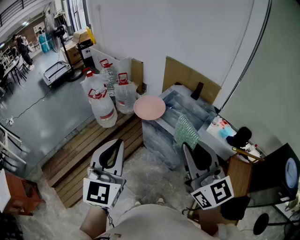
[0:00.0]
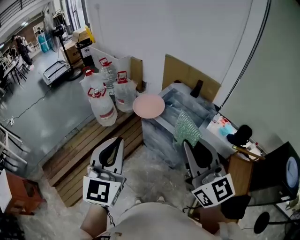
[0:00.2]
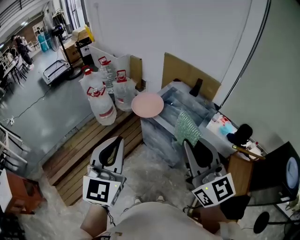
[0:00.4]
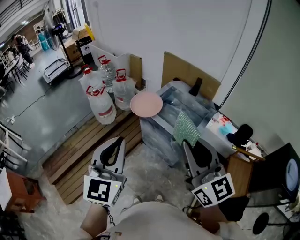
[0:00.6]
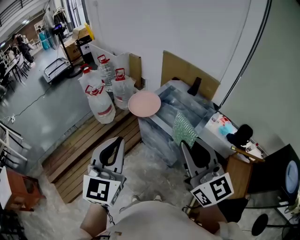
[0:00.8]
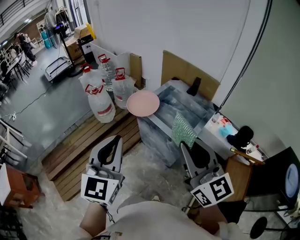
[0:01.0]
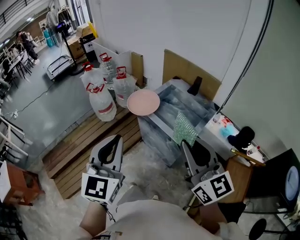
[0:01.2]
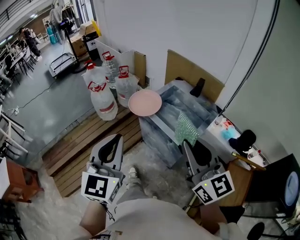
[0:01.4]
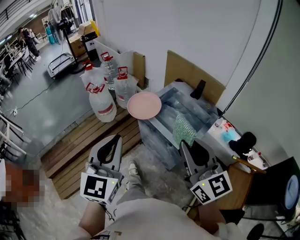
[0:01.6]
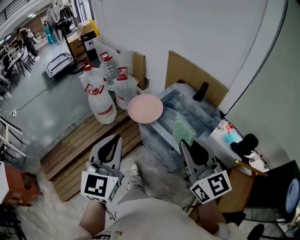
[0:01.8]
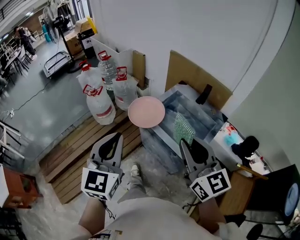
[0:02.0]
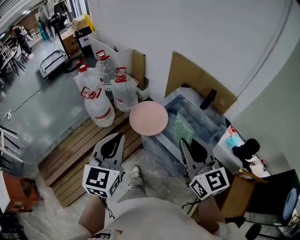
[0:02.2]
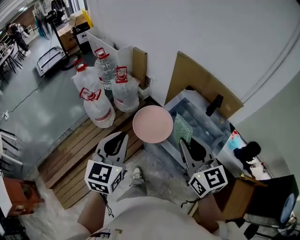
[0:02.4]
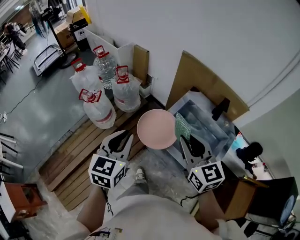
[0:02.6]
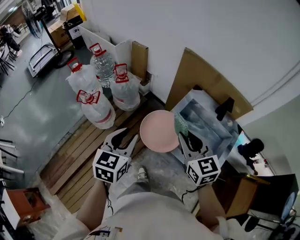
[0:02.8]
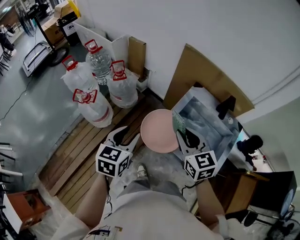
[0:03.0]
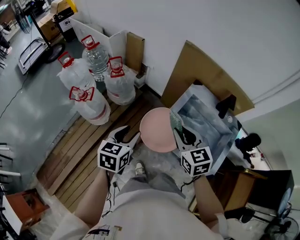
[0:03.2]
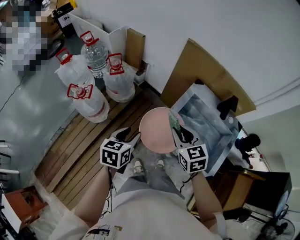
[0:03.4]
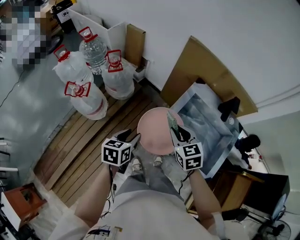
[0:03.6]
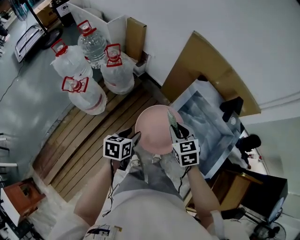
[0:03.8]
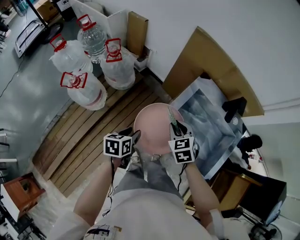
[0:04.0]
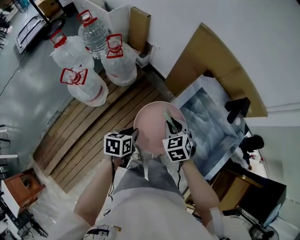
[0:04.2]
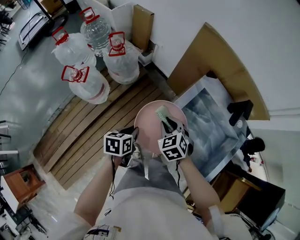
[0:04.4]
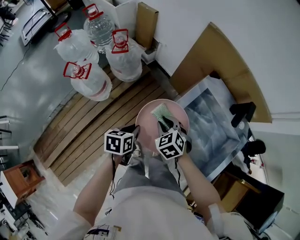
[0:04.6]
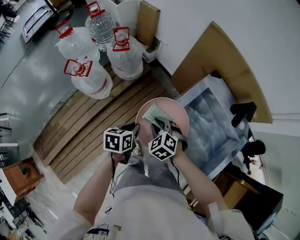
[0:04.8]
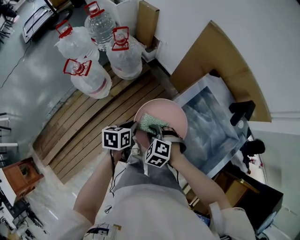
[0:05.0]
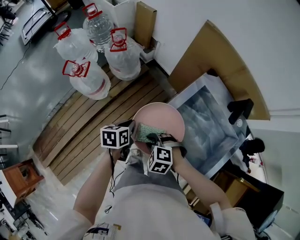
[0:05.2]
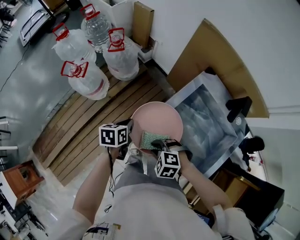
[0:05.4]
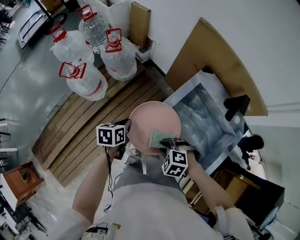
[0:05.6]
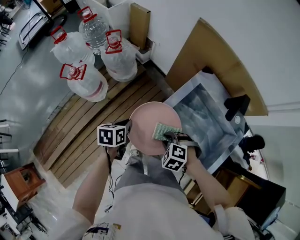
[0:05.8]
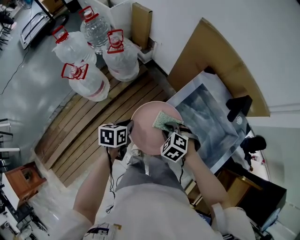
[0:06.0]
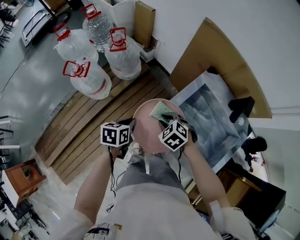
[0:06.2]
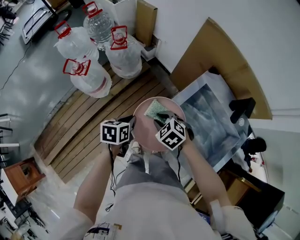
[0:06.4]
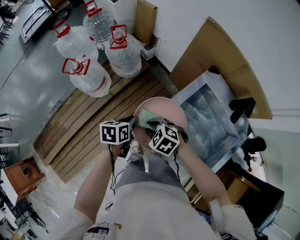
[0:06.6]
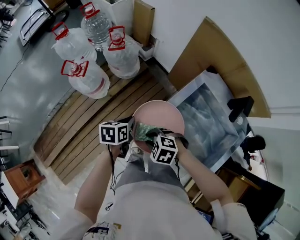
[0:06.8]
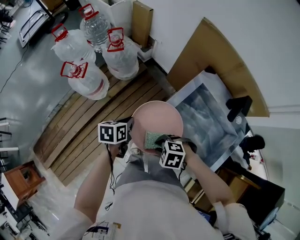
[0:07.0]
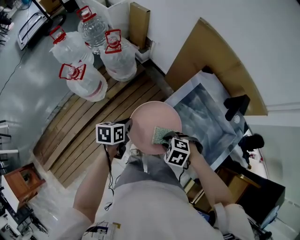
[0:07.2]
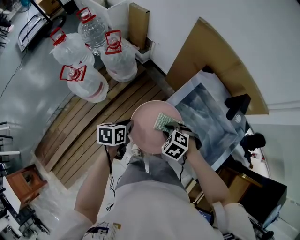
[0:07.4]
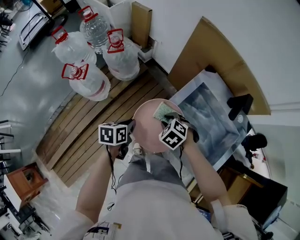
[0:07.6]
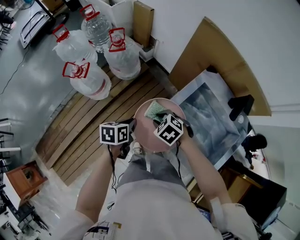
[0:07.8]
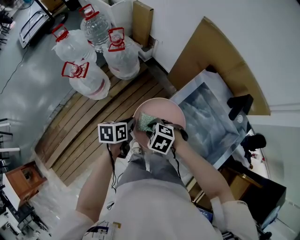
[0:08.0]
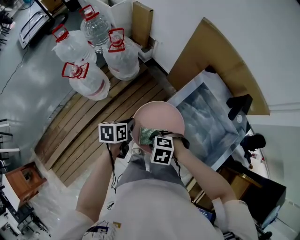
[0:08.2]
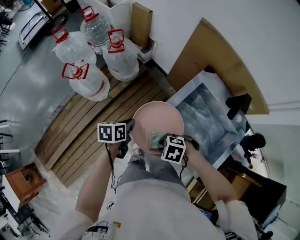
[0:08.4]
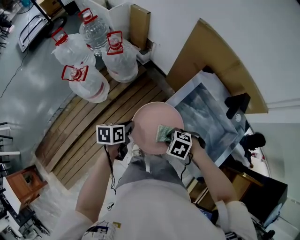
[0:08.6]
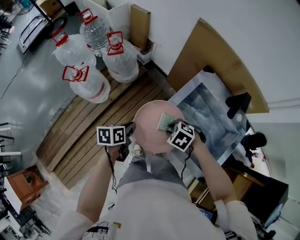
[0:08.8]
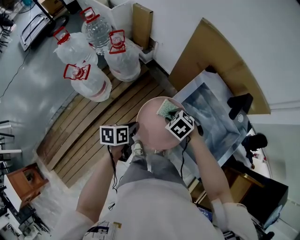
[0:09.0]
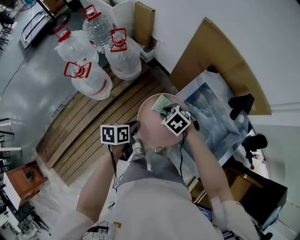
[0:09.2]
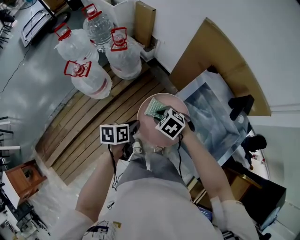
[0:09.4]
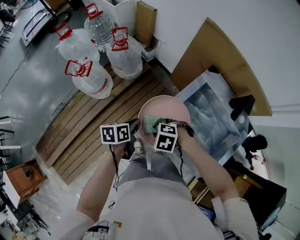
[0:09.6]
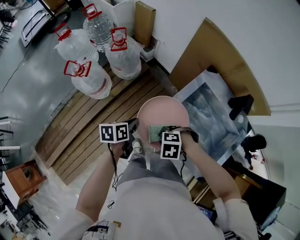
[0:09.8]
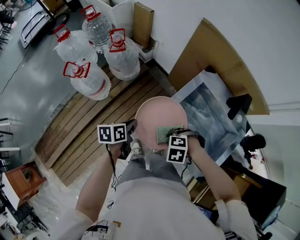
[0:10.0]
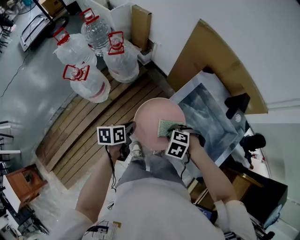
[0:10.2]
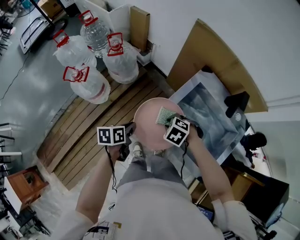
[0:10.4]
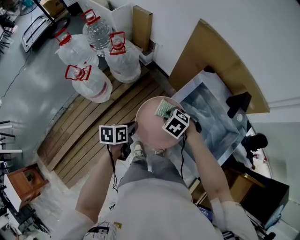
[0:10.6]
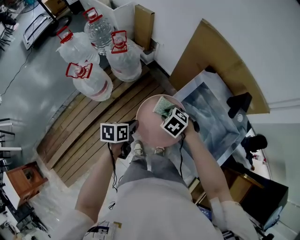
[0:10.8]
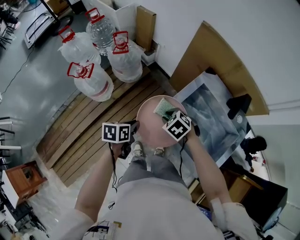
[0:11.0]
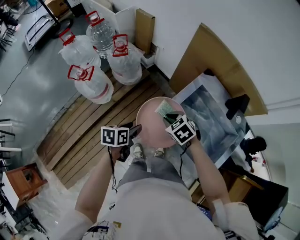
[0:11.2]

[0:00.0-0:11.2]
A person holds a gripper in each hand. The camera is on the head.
0:00.0 to 0:01.6: The left gripper shifts approximately 10 cm to the right and forward. Meanwhile the right gripper shifts about 15 cm to the right, forward and downward.
0:01.6 to 0:03.2: Both grippers are carried forward, about 40 cm. Both grippers travel together downward, roughly 25 cm. The left gripper points its fingers about 30 degrees further downward, and opens its fingers; the right gripper tips its fingers downward by about 30 degrees.
0:03.2 to 0:04.8: The two grippers go approximately 20 cm downward. The left gripper changes its angle by some 30 degrees, and closes its fingers. The right gripper rotates about 50 degrees.
0:09.6 to 0:11.2: The right gripper ends up approximately 10 cm from where it was, and changes its angle by about 40 degrees. Meanwhile the left gripper opens.

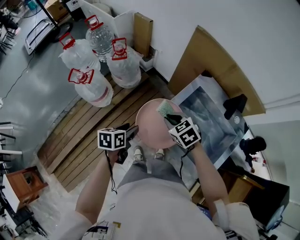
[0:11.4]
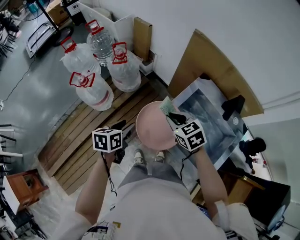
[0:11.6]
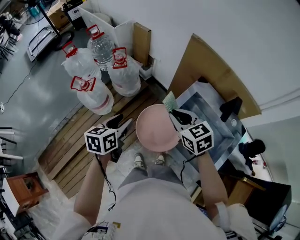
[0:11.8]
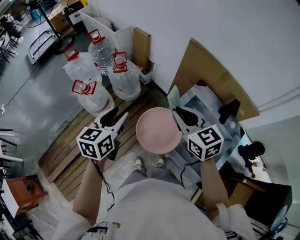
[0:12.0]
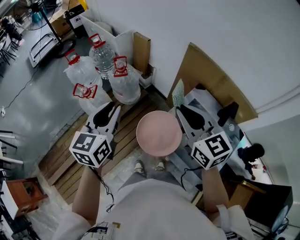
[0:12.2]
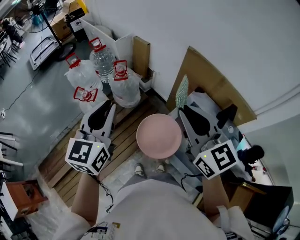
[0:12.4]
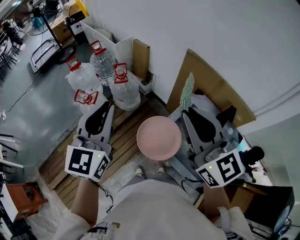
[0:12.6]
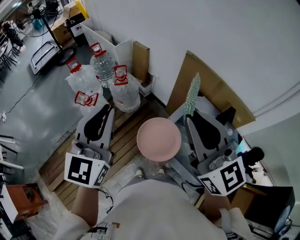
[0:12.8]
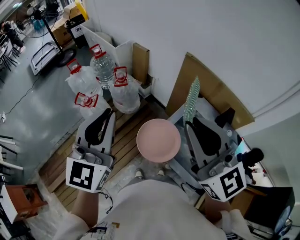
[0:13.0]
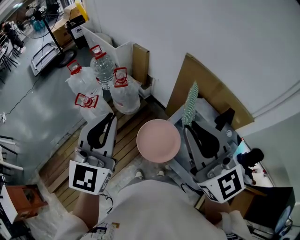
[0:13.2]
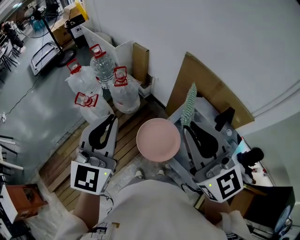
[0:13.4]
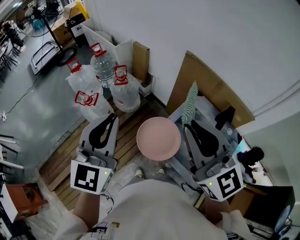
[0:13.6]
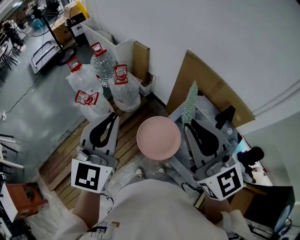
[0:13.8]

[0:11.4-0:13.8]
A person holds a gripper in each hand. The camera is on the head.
0:11.4 to 0:12.6: The grippers both shift upward by approximately 40 cm. The left gripper tips its fingers upward by about 40 degrees, and closes up. Meanwhile the right gripper tips its fingers upward by about 60 degrees.
0:12.6 to 0:13.8: There are only small adjustments of the grippers.

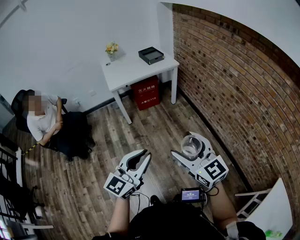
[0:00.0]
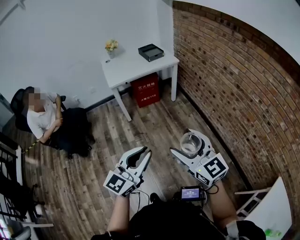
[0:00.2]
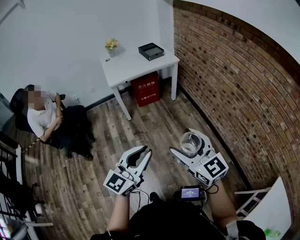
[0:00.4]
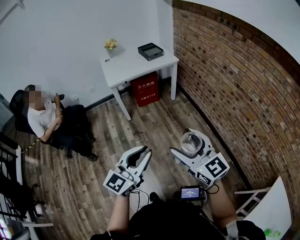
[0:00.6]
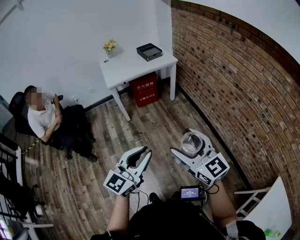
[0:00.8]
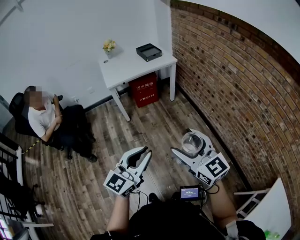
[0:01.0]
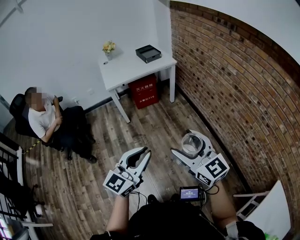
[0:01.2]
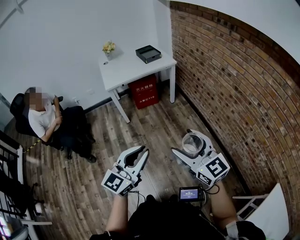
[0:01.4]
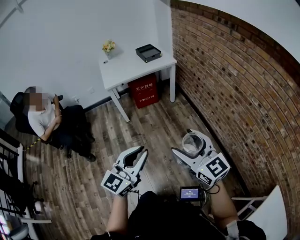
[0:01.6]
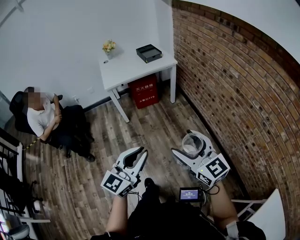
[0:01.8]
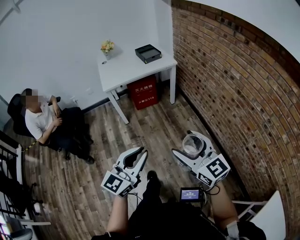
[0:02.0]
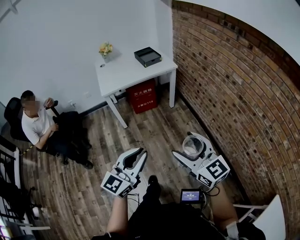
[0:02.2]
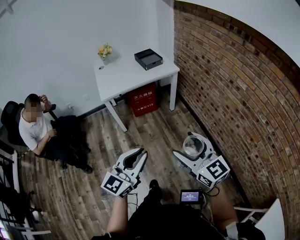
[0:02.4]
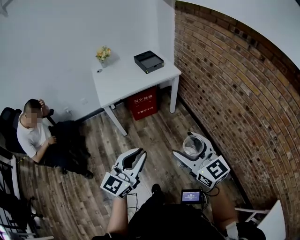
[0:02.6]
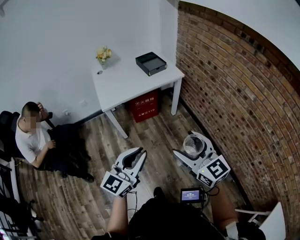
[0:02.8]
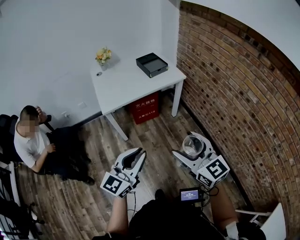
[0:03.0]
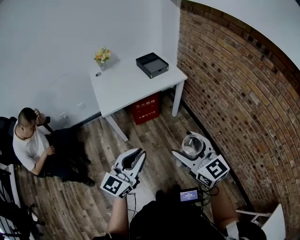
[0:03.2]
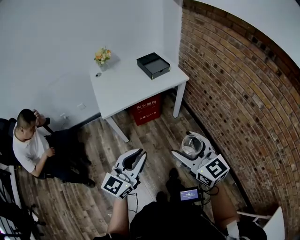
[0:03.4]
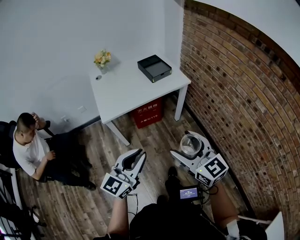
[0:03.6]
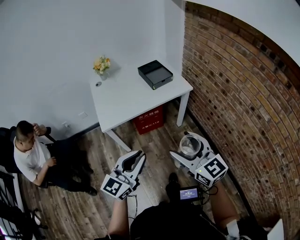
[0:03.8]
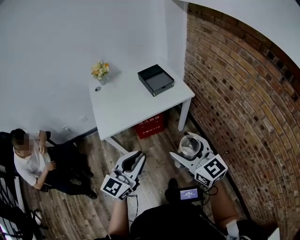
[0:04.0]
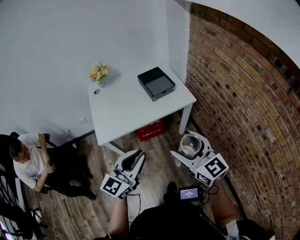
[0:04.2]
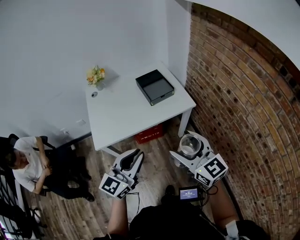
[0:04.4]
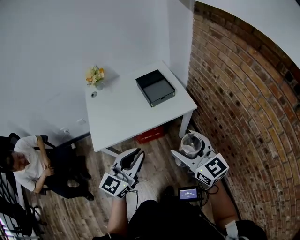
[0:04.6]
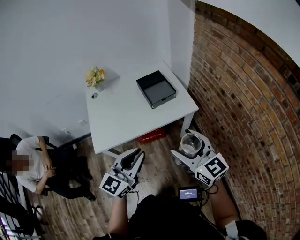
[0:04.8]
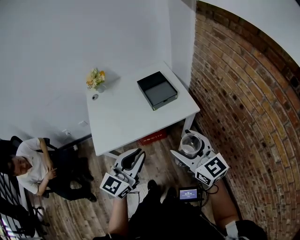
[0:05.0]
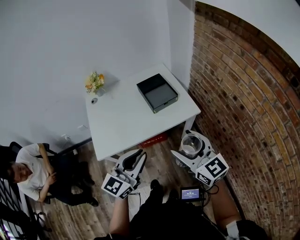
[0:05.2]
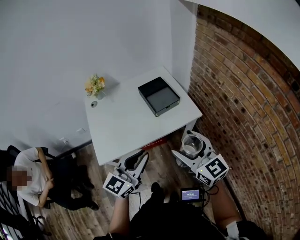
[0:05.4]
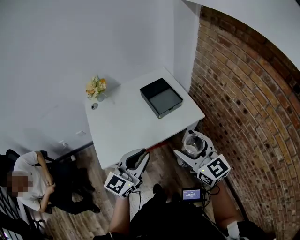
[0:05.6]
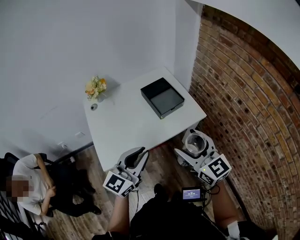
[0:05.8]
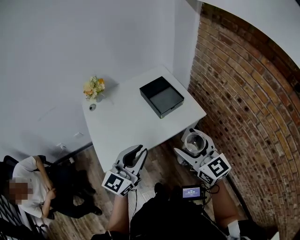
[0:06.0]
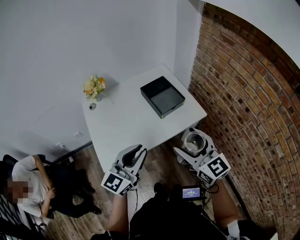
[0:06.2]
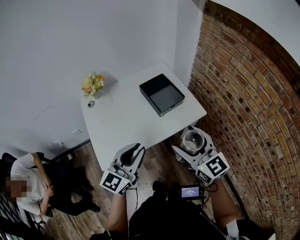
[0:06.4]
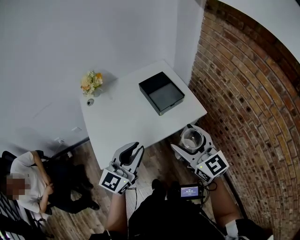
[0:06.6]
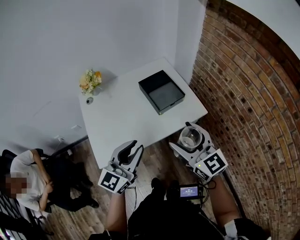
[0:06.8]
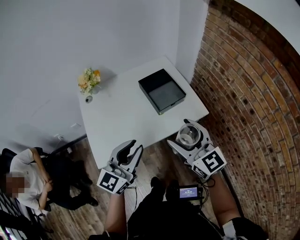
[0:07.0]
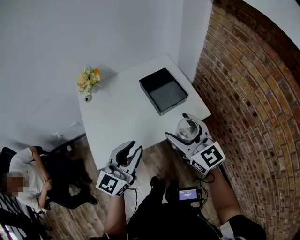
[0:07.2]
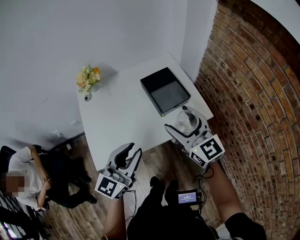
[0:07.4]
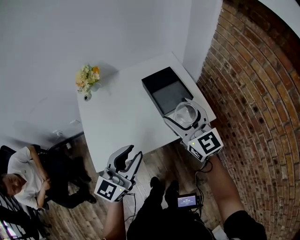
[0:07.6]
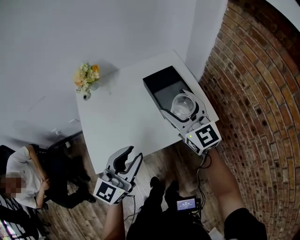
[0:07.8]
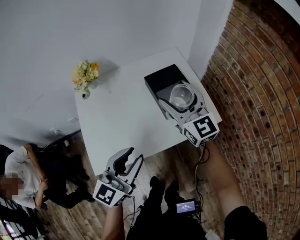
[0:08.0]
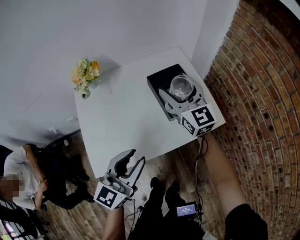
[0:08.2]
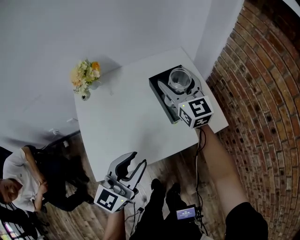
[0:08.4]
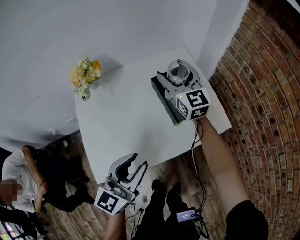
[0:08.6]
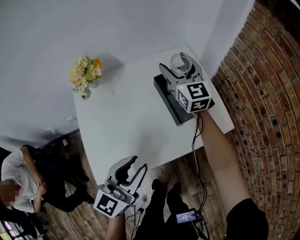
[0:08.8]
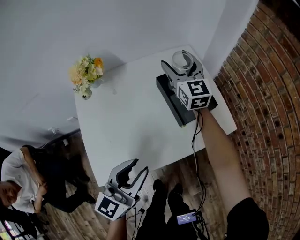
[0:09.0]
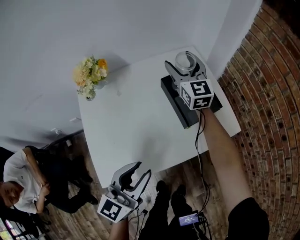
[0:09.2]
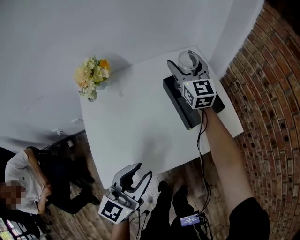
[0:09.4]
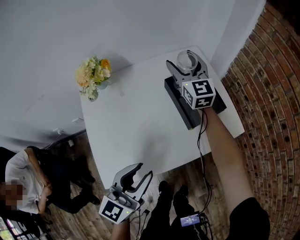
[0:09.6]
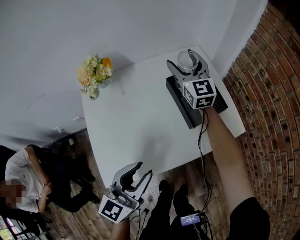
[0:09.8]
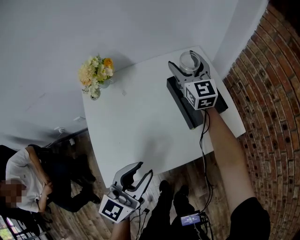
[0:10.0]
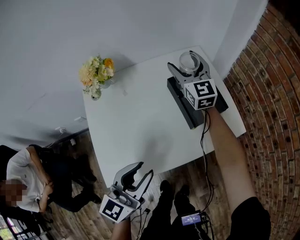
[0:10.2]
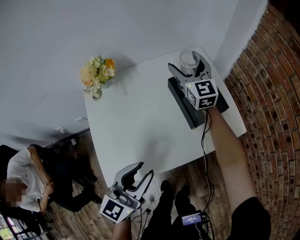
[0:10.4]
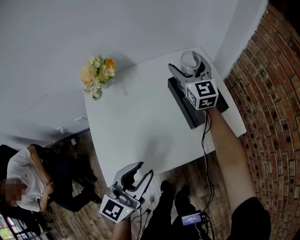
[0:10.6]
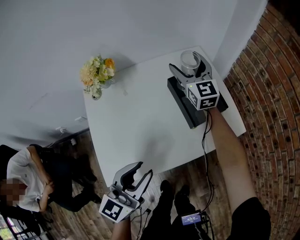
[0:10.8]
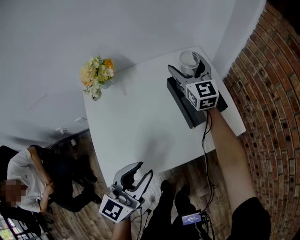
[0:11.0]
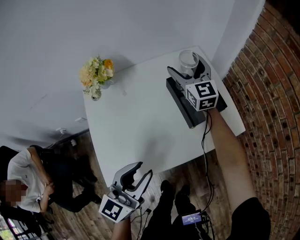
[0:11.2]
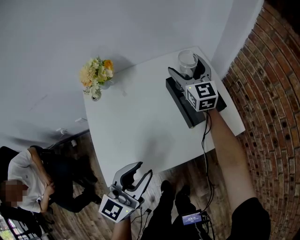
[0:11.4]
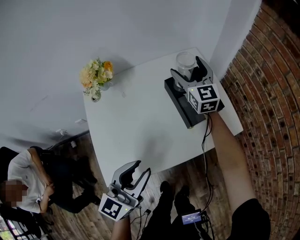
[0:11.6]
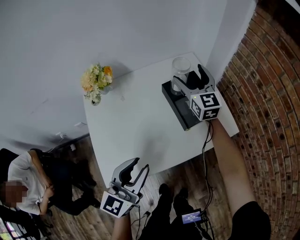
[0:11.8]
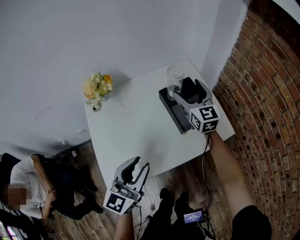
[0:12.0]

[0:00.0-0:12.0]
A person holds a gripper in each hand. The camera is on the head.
0:00.0 to 0:01.6: The grippers both shift to the right by about 5 cm.
0:01.6 to 0:03.0: The two grippers go about 30 cm forward and to the left.
0:03.0 to 0:04.4: Both grippers travel together forward, roughly 30 cm.
0:04.4 to 0:06.0: Both grippers travel together forward and to the left, about 15 cm.
0:06.0 to 0:07.6: The right gripper heads forward, covering some 20 cm, while the left gripper moves forward, about 5 cm.
0:07.6 to 0:09.0: The left gripper goes approximately 10 cm to the left, downward and forward; the right gripper heads forward, covering roughly 25 cm.
0:09.0 to 0:10.4: The grippers move only a little.
0:10.4 to 0:12.0: The right gripper is displaced backward and to the right by roughly 10 cm.
